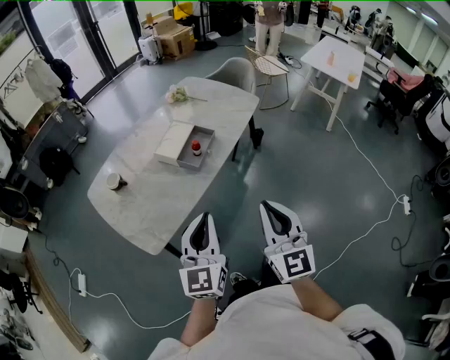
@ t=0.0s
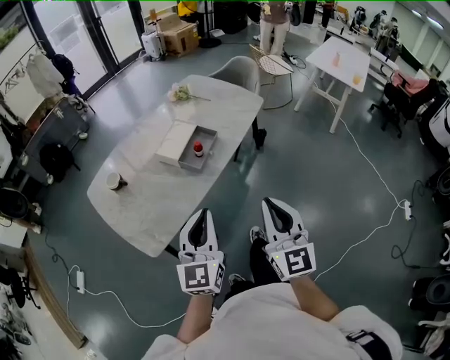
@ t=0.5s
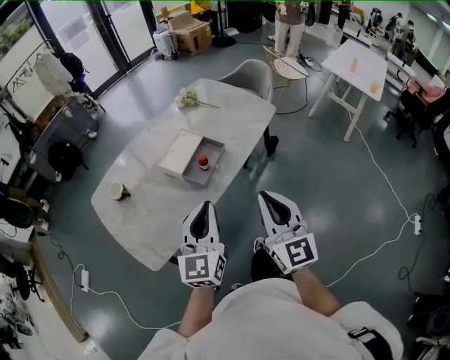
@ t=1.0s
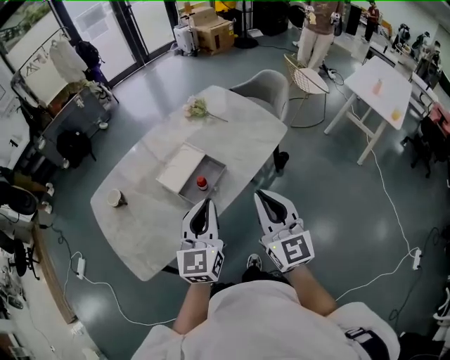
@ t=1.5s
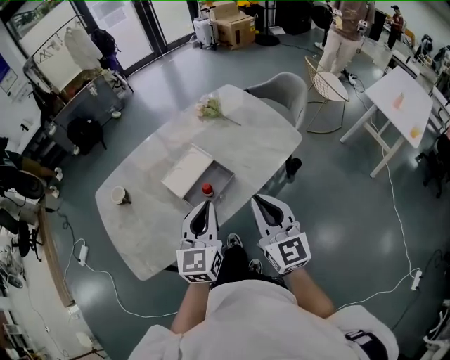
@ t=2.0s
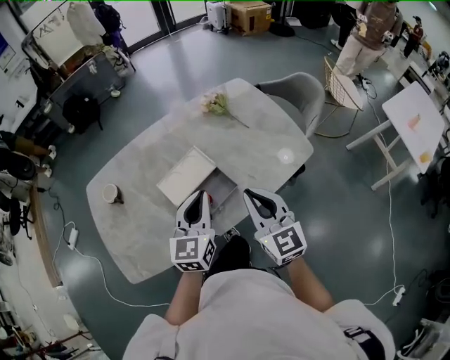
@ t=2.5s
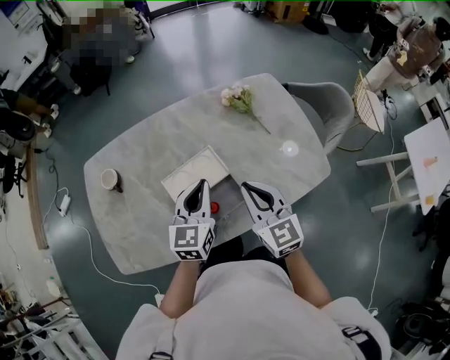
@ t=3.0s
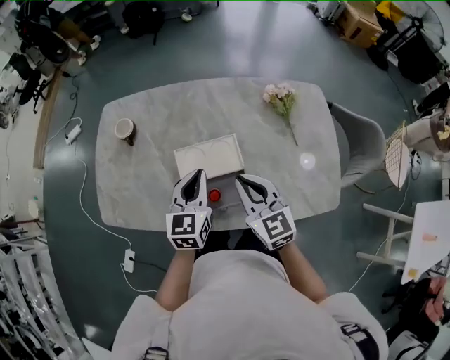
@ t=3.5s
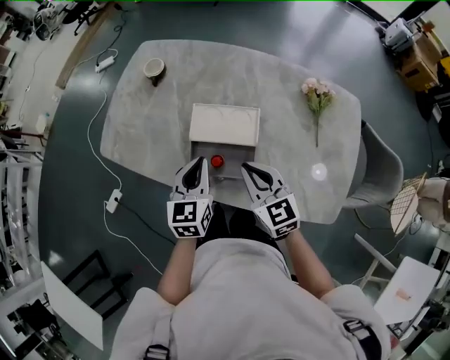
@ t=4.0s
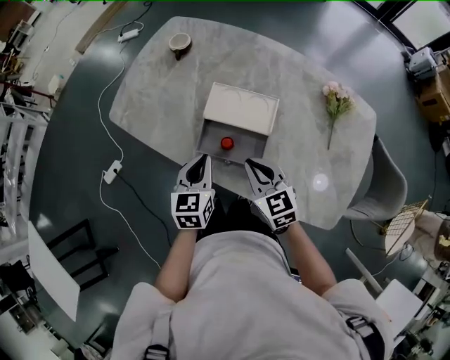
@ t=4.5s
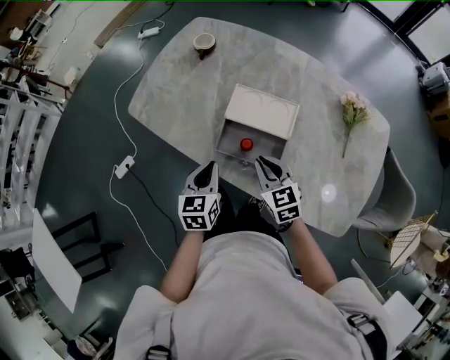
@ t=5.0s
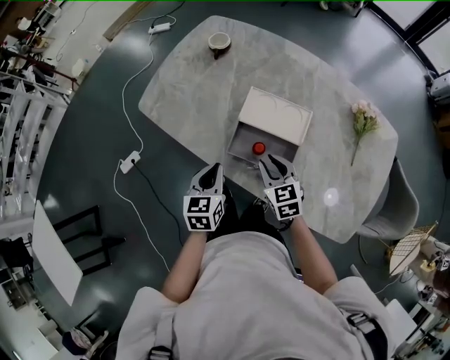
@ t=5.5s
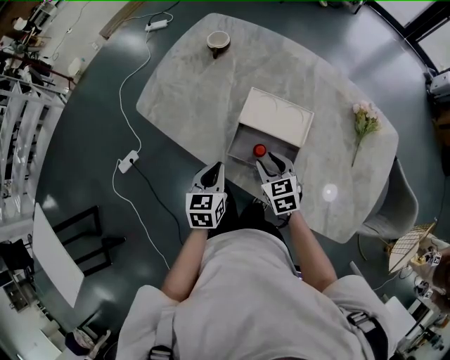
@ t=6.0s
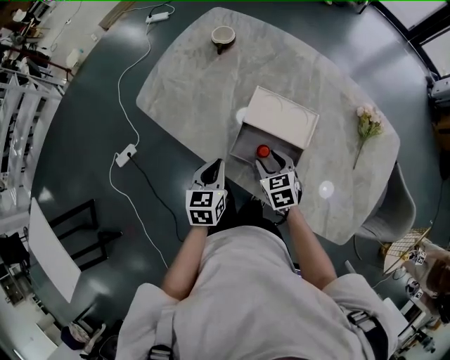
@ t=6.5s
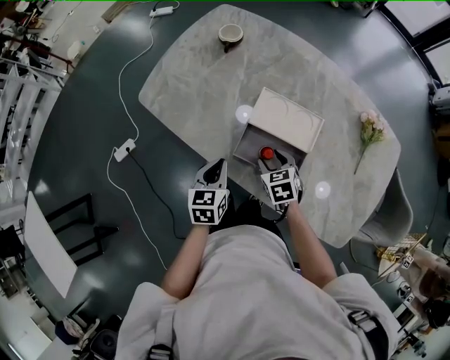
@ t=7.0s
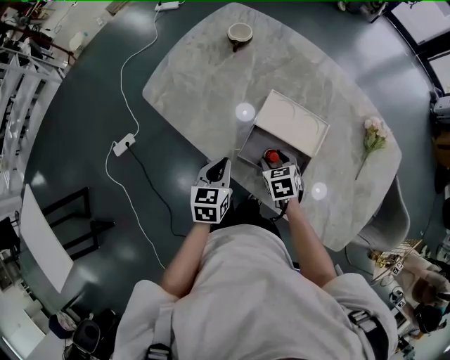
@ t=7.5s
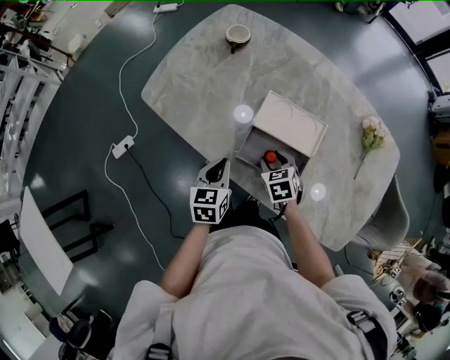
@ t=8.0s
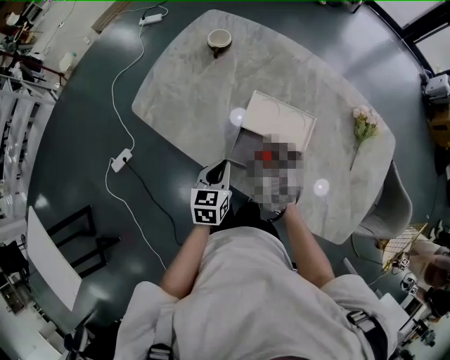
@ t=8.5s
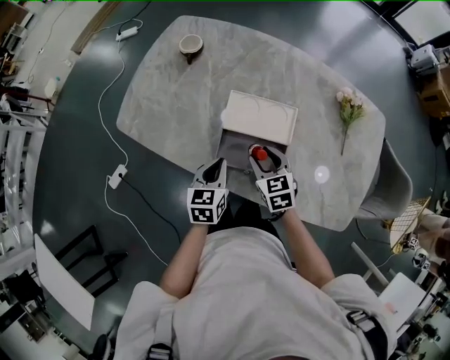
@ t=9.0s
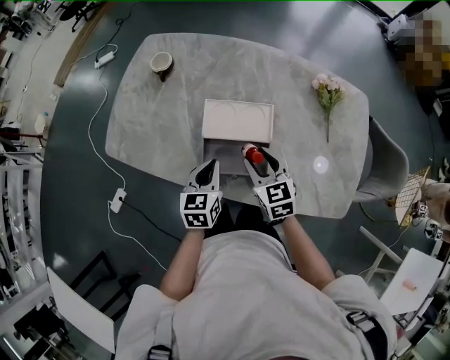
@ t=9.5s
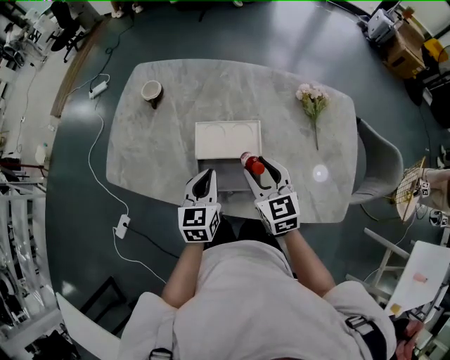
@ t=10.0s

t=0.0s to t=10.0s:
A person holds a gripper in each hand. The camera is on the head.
t=0.0s to t=2.0s: Both grippers travel together forward, roughly 35 cm. The right gripper rotates roughly 30 degrees.
t=2.0s to t=4.0s: The right gripper ends up some 30 cm from where it was, and changes its angle by about 70 degrees; the left gripper changes place by some 20 cm, and turns by about 60 degrees.
t=4.0s to t=6.0s: The left gripper goes roughly 15 cm to the left and downward, while the right gripper moves downward and to the left, about 15 cm, changes its angle by roughly 20 degrees, and opens up.
t=6.0s to t=8.0s: The right gripper moves downward, some 5 cm.
t=8.0s to t=10.0s: The right gripper travels upward and to the right by roughly 20 cm, and angles its fingers upward, by some 30 degrees, while the left gripper moves to the right, upward and forward, about 15 cm, and swivels some 20 degrees.

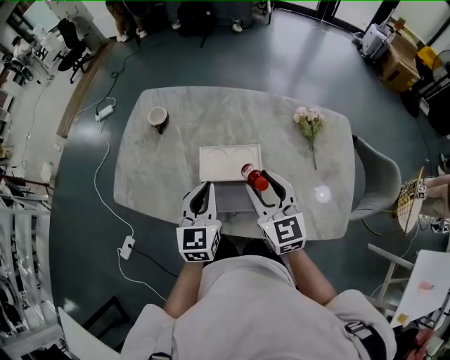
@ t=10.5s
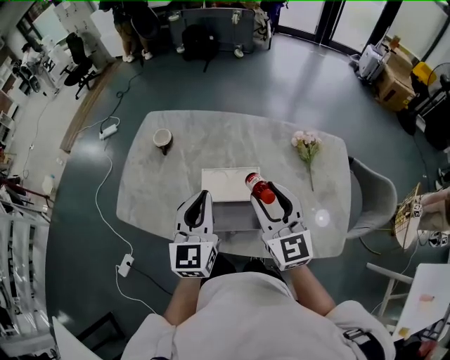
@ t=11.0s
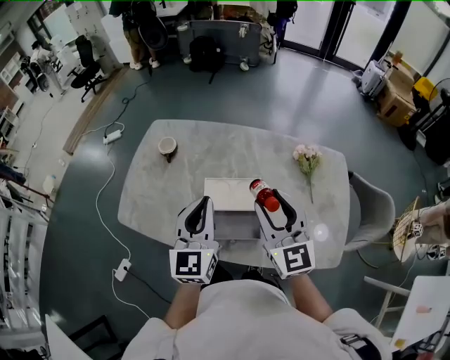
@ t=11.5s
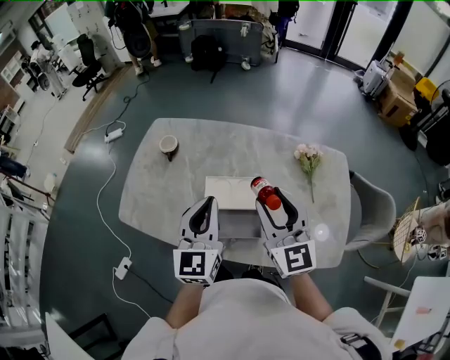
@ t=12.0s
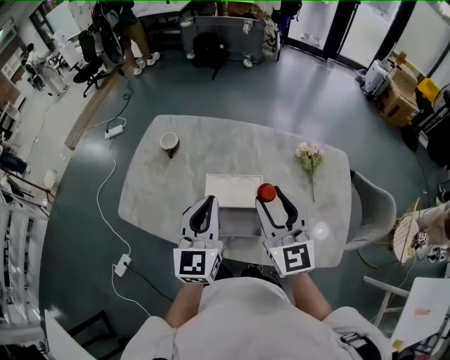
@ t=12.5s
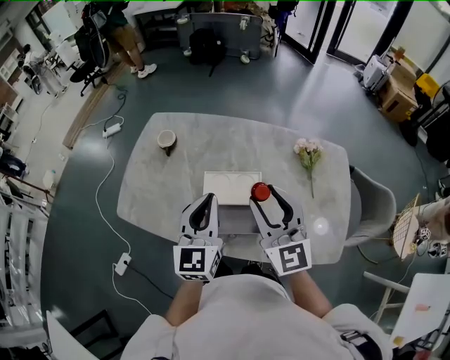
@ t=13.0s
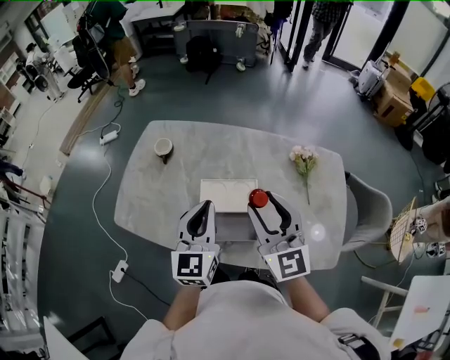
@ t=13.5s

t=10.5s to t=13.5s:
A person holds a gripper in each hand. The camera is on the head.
t=10.5s to t=12.0s: Both grippers travel together upward, some 10 cm.
t=12.0s to t=13.5s: The grippers stay close to where they were, moving slightly.

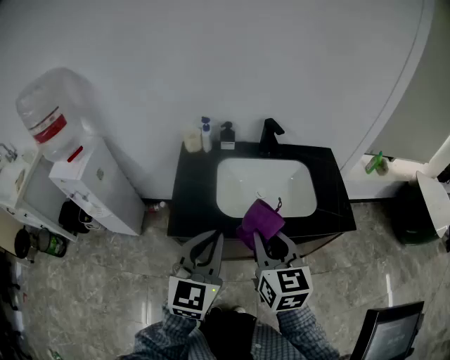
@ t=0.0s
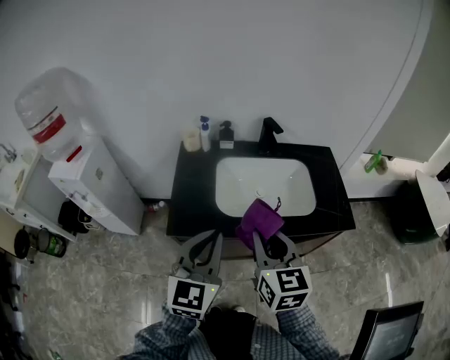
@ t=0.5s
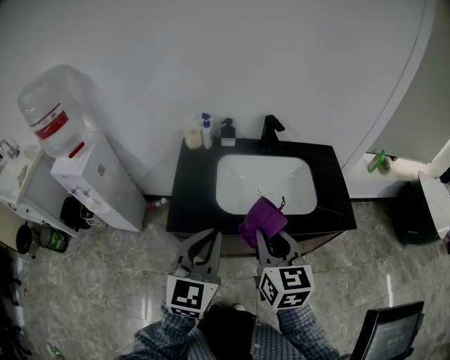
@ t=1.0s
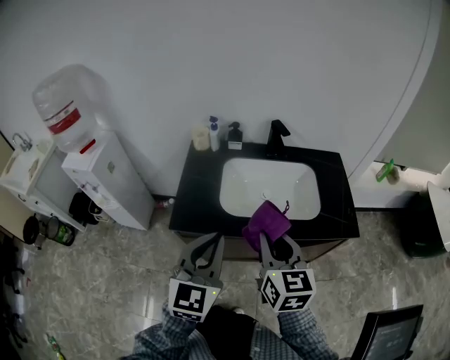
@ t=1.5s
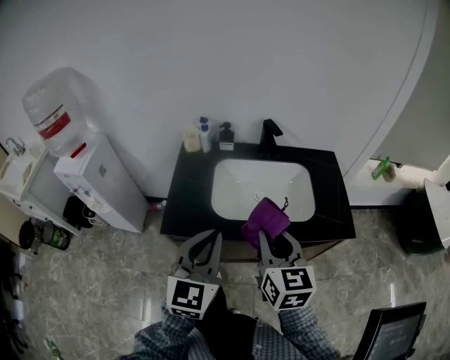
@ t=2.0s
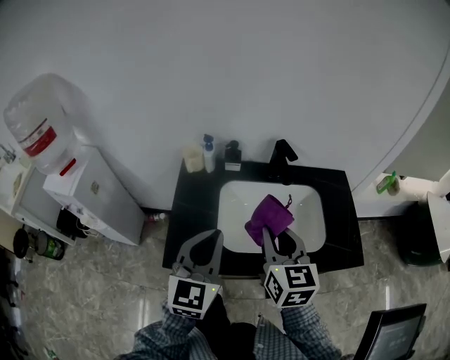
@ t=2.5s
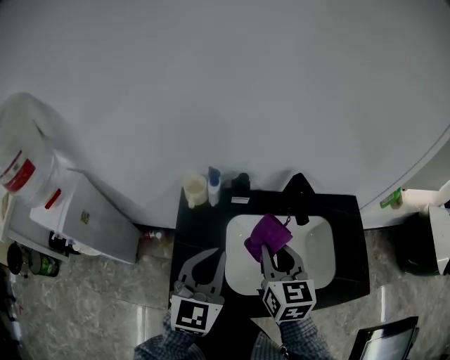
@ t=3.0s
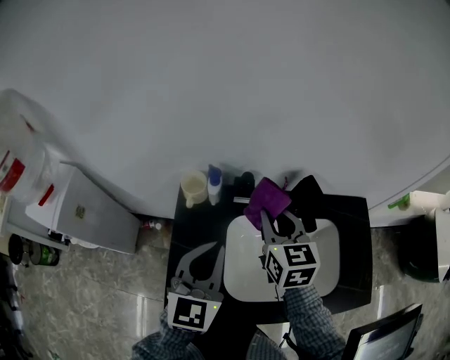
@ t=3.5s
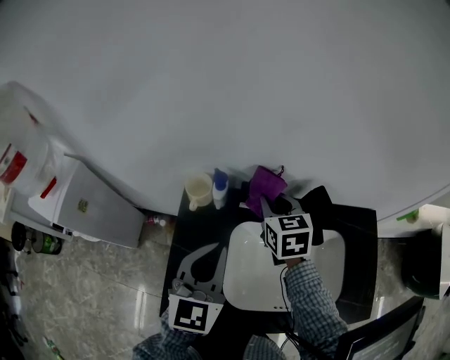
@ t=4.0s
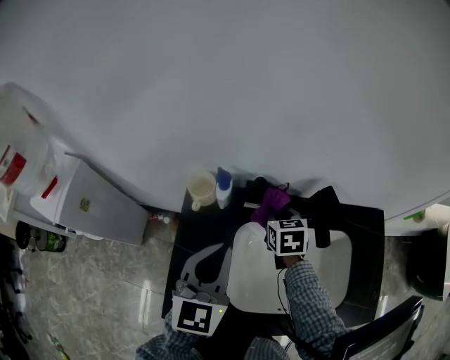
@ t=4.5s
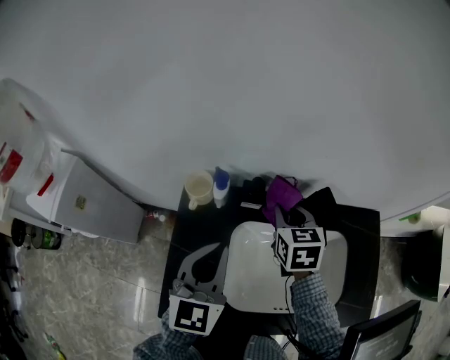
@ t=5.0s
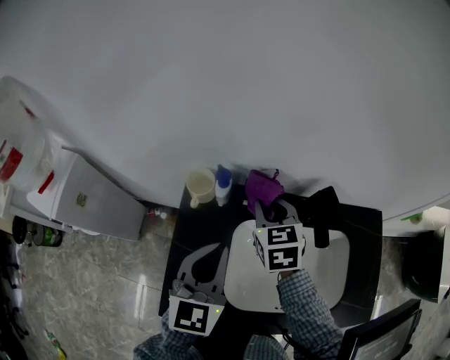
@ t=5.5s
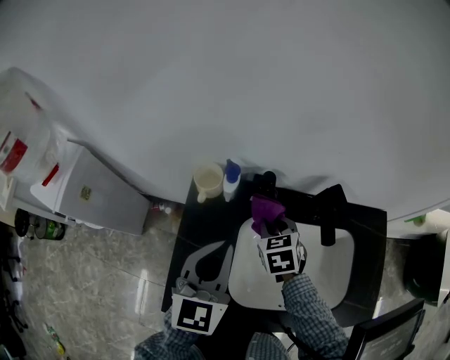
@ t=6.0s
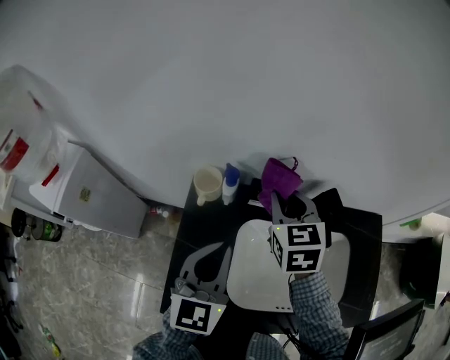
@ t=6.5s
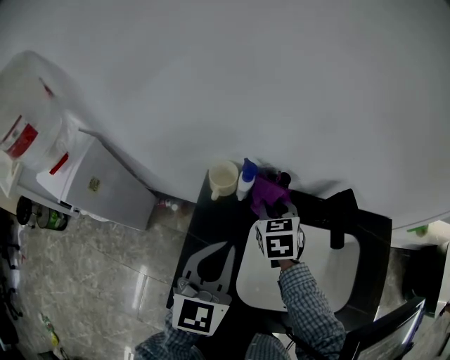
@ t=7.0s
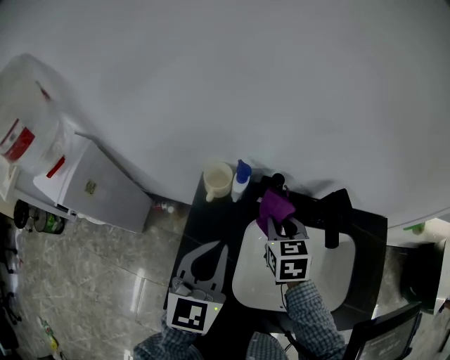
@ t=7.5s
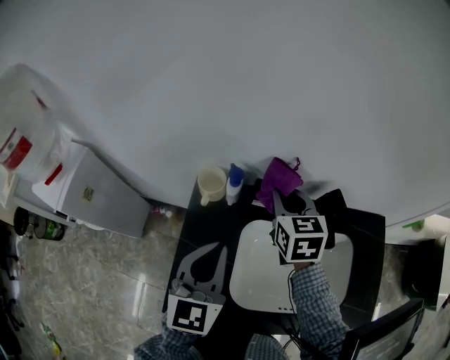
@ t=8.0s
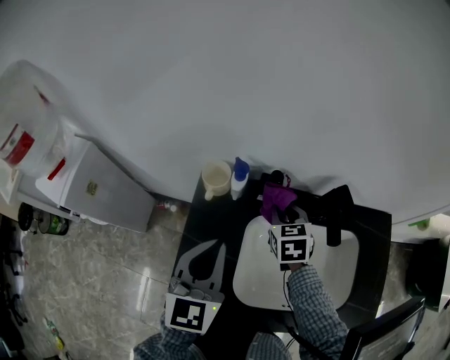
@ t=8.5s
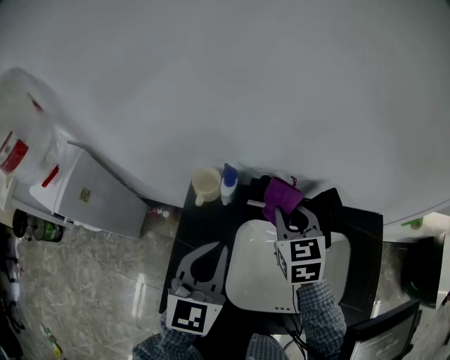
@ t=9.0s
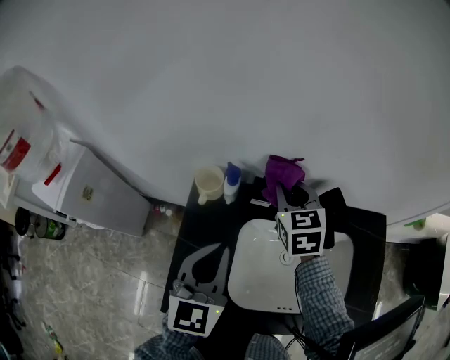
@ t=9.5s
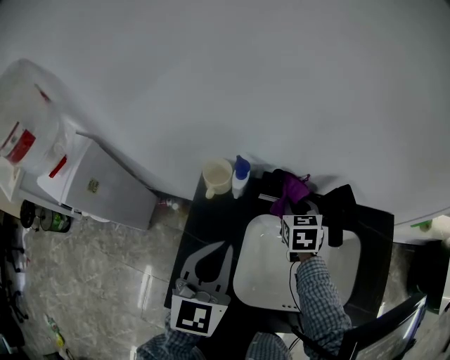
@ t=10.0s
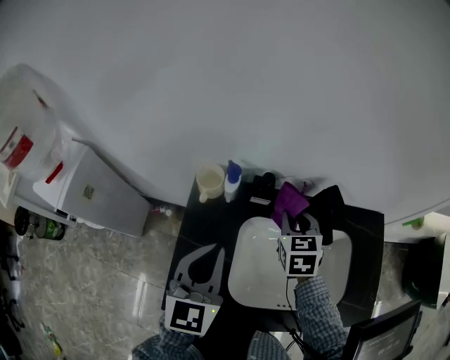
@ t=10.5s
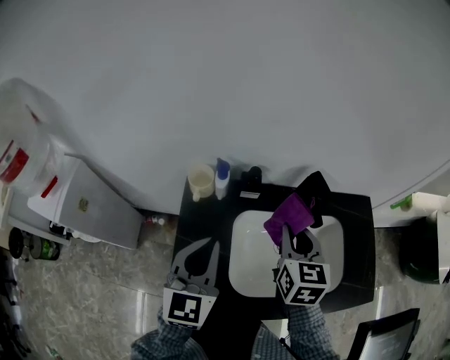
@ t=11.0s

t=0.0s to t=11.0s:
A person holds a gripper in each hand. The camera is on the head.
t=0.0s to t=2.0s: The right gripper goes roughly 5 cm to the right.
t=2.0s to t=3.5s: The two grippers go approximately 35 cm forward.
t=3.5s to t=5.5s: The right gripper goes roughly 10 cm forward and downward.
t=5.5s to t=7.5s: The right gripper moves up and down over approximately 15 cm, changing direction 2 times.
t=7.5s to t=9.0s: The right gripper goes up and down, roughly 10 cm each way, reversing 2 times.
t=9.0s to t=11.0s: The right gripper moves backward, about 10 cm, and rotates some 20 degrees.

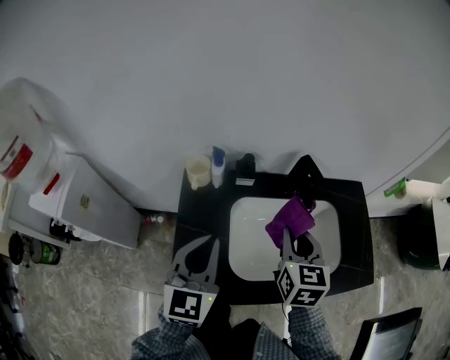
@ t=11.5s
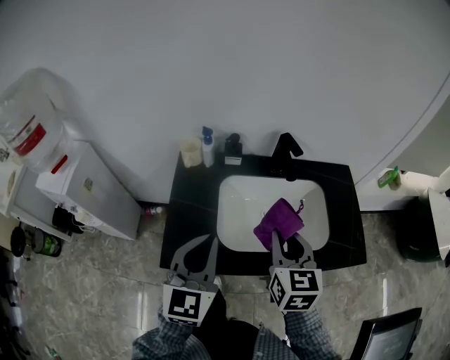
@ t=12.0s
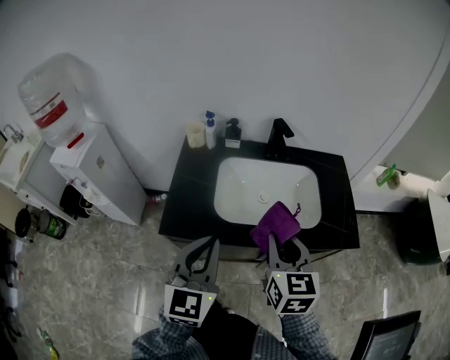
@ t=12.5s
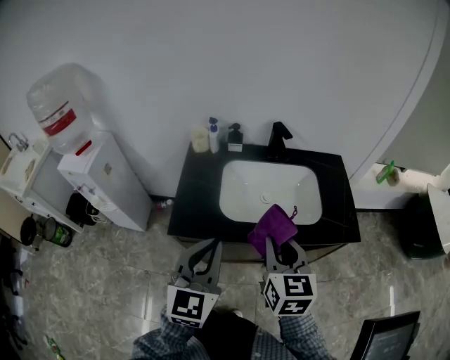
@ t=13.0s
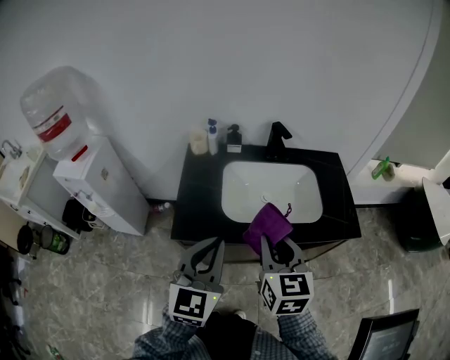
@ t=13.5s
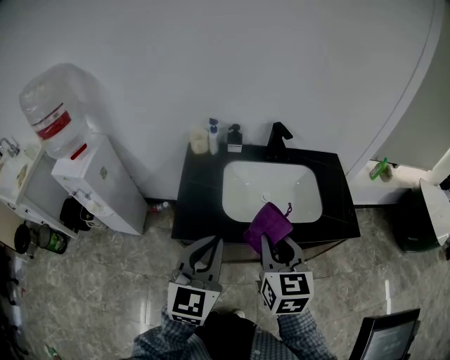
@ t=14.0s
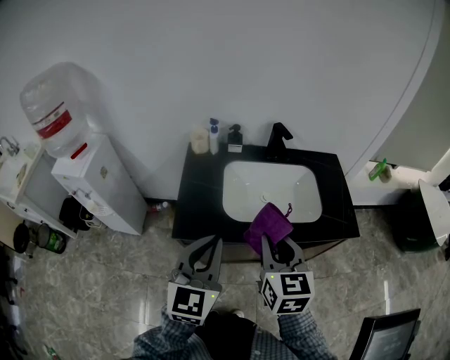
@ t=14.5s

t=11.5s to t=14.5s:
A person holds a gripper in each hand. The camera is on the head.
t=11.5s to t=13.0s: The two grippers go some 25 cm backward.
t=13.0s to t=14.5s: There are only small adjustments of the grippers.
